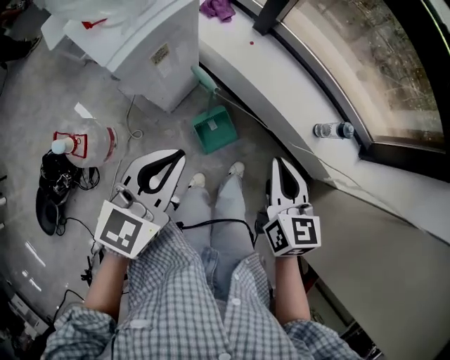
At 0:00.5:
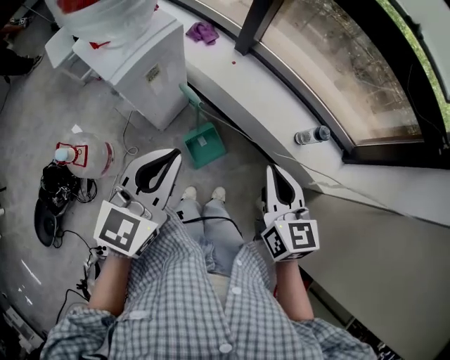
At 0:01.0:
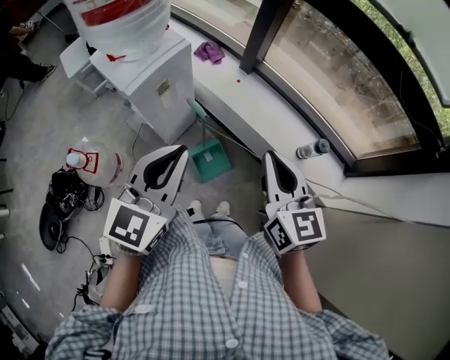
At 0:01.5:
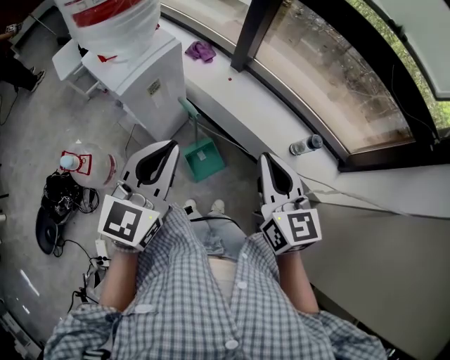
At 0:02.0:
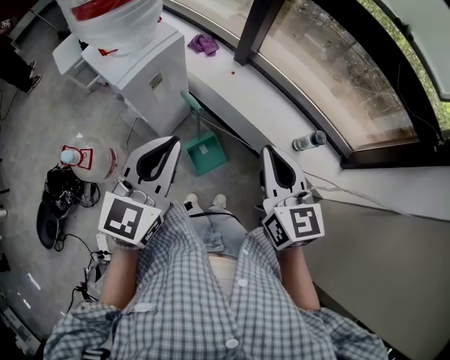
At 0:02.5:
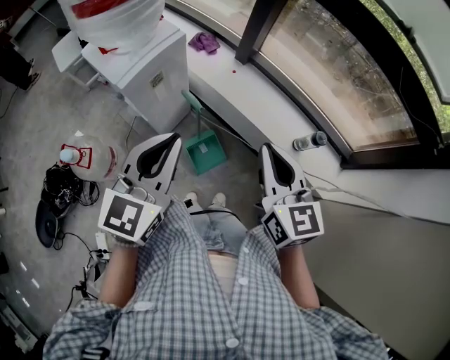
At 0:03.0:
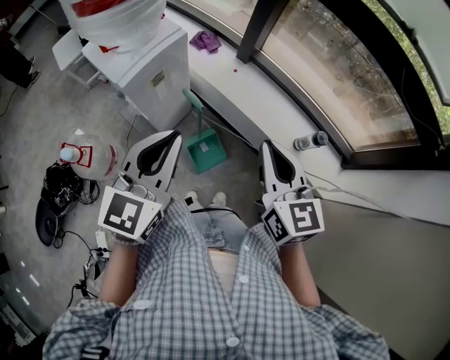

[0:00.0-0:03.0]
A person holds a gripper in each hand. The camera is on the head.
0:00.0 to 0:01.5: The two grippers go some 15 cm upward.
0:01.5 to 0:03.0: The grippers move only a little.

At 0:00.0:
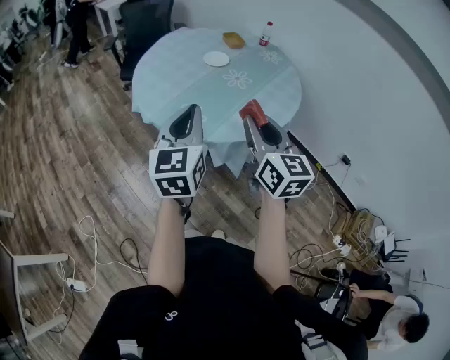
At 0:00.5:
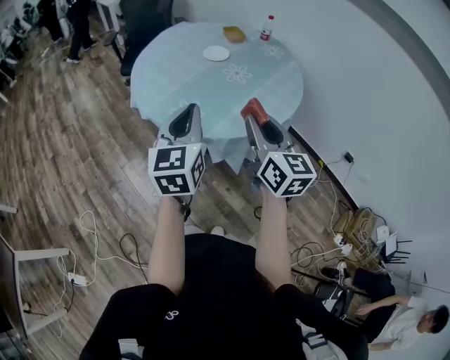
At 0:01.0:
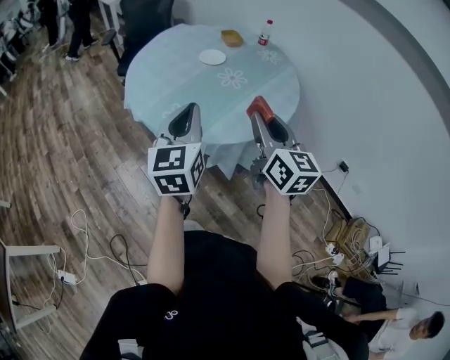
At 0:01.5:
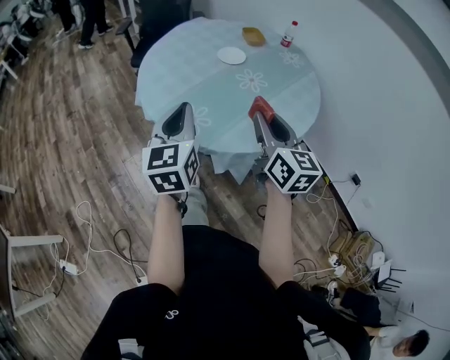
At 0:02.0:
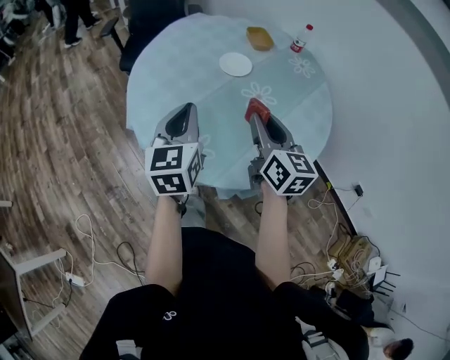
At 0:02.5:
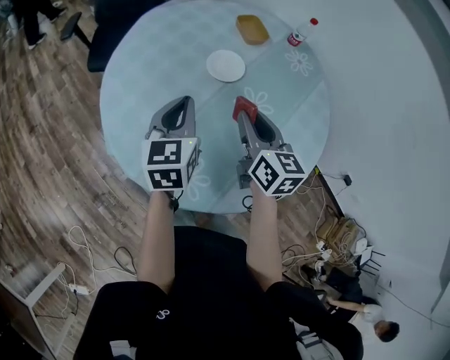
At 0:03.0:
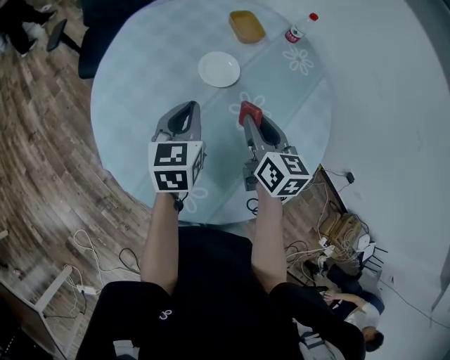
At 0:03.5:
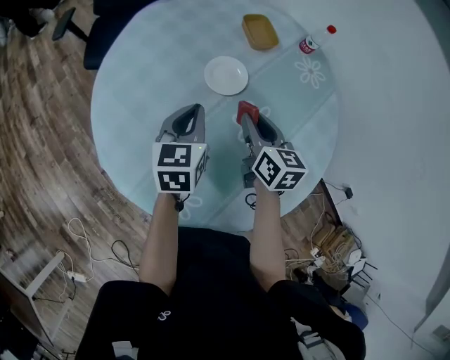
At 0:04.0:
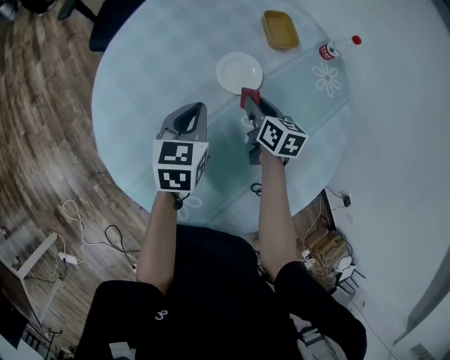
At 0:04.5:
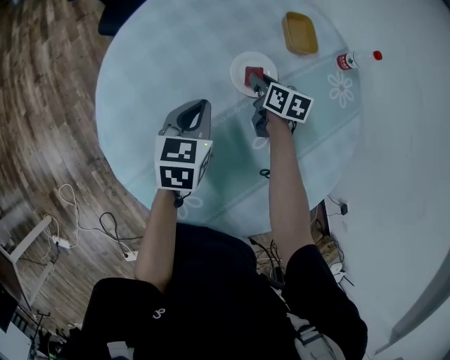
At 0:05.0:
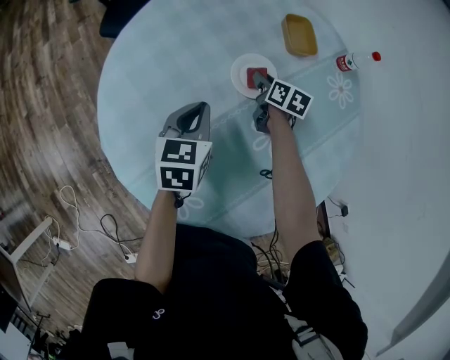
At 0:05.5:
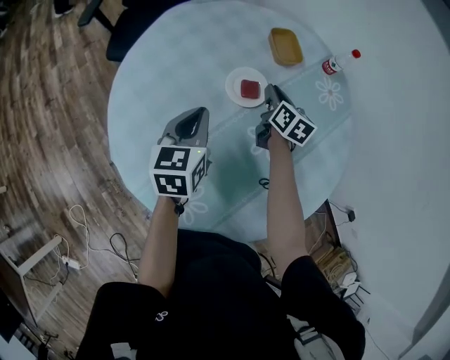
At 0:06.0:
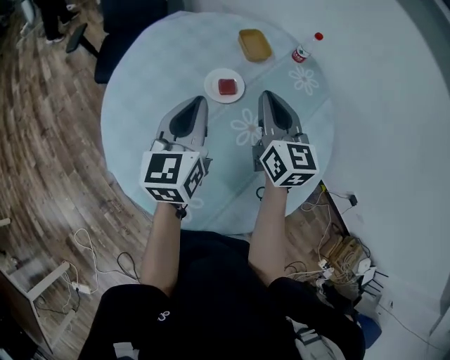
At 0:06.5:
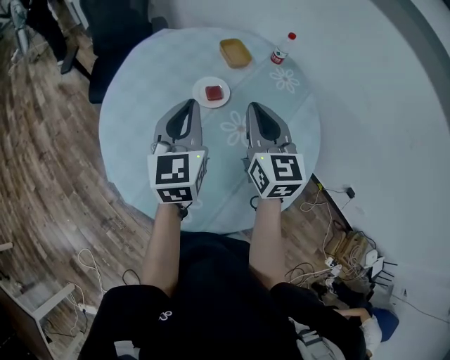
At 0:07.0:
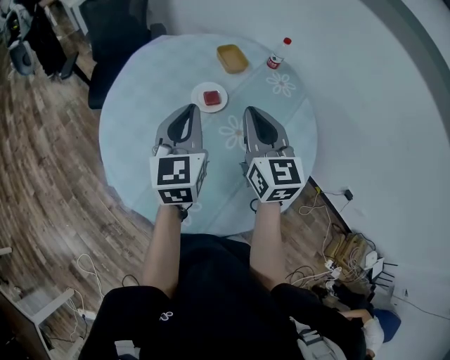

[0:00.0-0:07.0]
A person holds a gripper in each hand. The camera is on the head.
0:00.0 to 0:02.0: The grippers both shift forward by approximately 30 cm.
0:02.0 to 0:03.5: The grippers both shift forward and downward by approximately 30 cm.
0:03.5 to 0:05.0: The right gripper travels forward and downward by roughly 25 cm, and turns by some 20 degrees. The left gripper travels downward by about 5 cm.
0:05.0 to 0:07.0: The right gripper shifts about 40 cm upward and backward, tips its fingers upward by about 40 degrees, and closes up. The left gripper is displaced upward and backward by some 25 cm, and turns by roughly 30 degrees.

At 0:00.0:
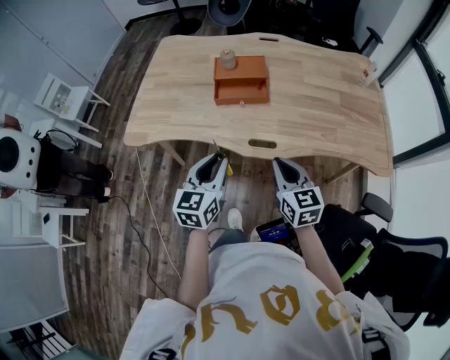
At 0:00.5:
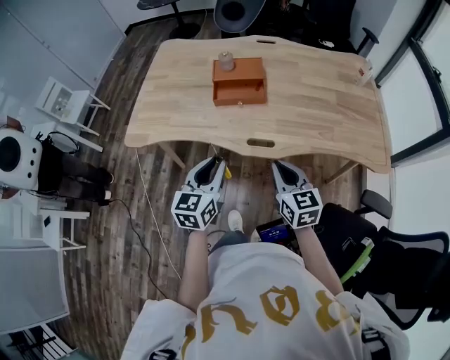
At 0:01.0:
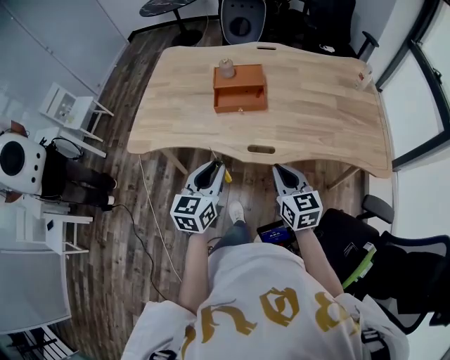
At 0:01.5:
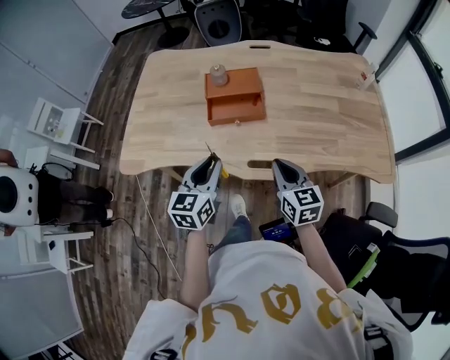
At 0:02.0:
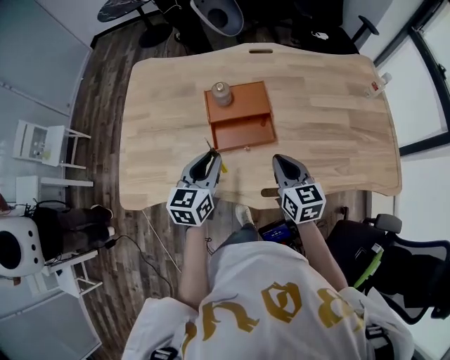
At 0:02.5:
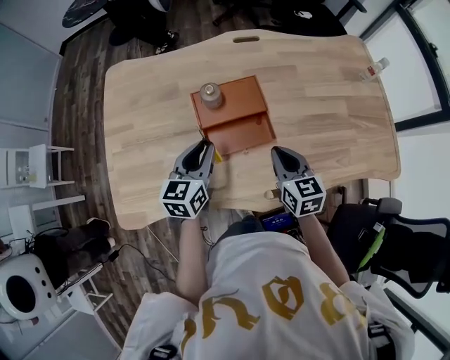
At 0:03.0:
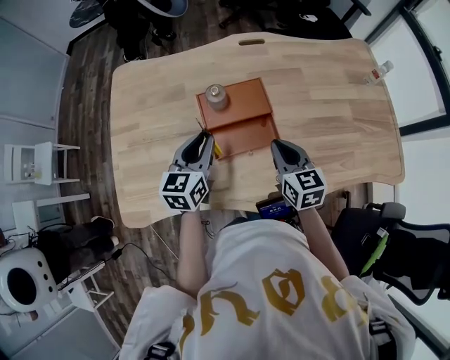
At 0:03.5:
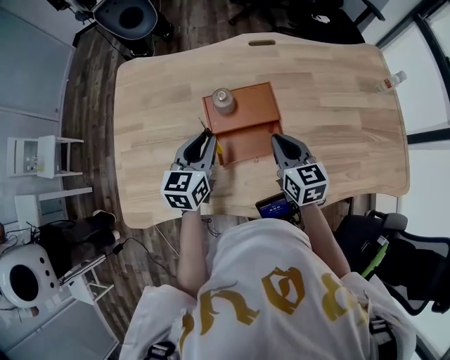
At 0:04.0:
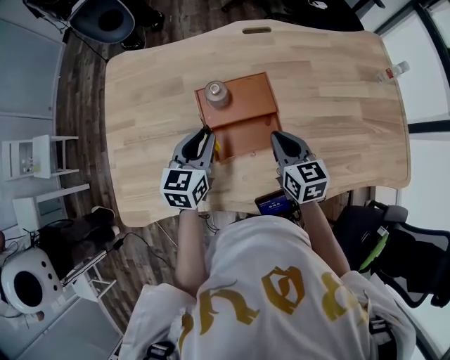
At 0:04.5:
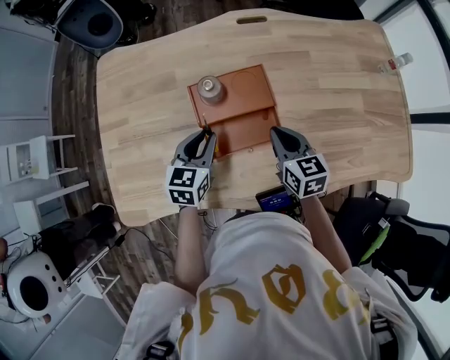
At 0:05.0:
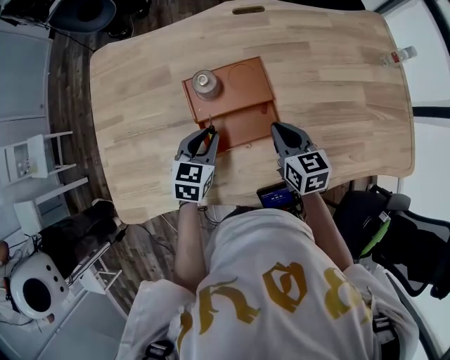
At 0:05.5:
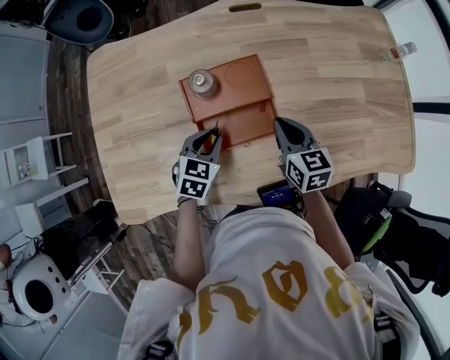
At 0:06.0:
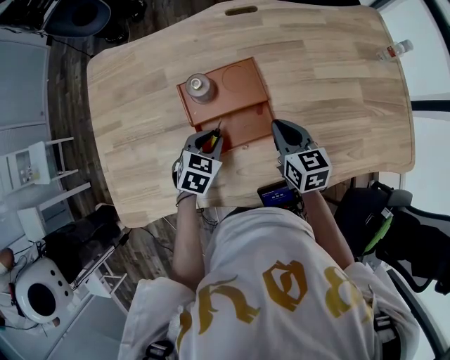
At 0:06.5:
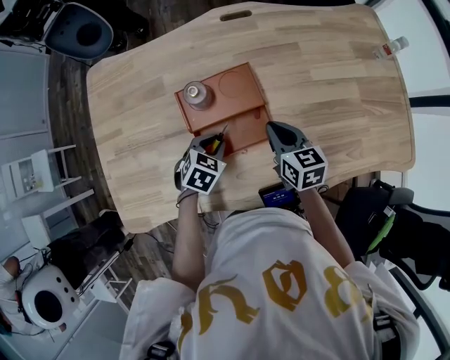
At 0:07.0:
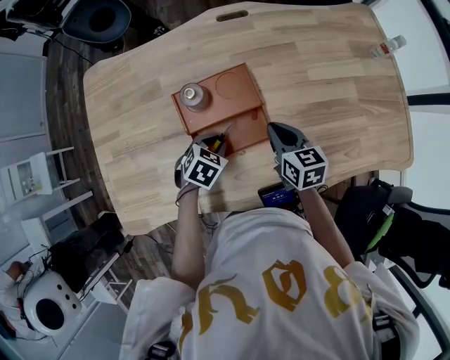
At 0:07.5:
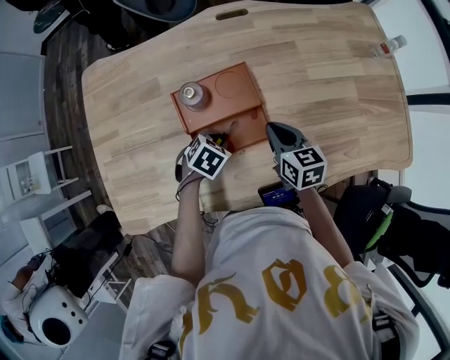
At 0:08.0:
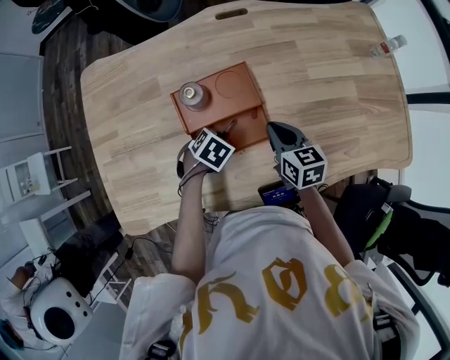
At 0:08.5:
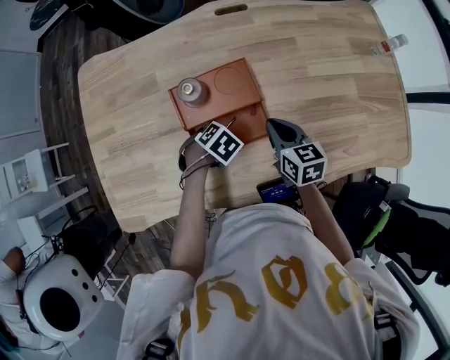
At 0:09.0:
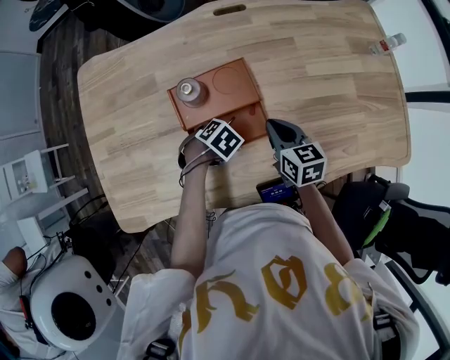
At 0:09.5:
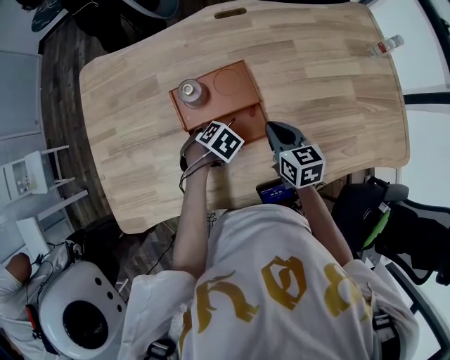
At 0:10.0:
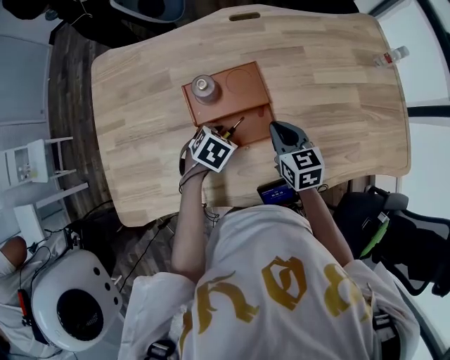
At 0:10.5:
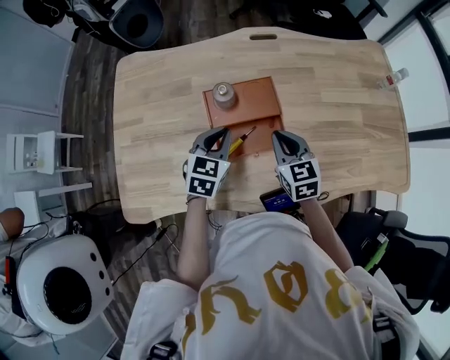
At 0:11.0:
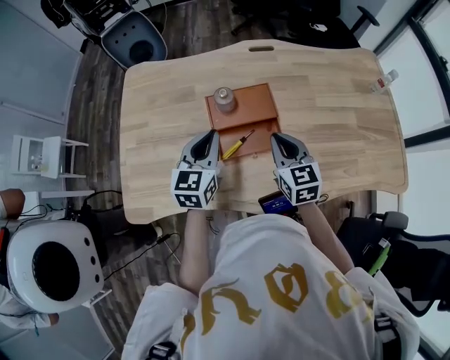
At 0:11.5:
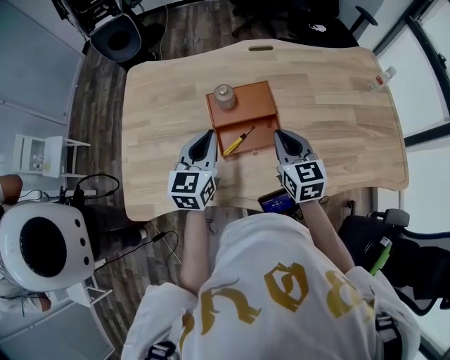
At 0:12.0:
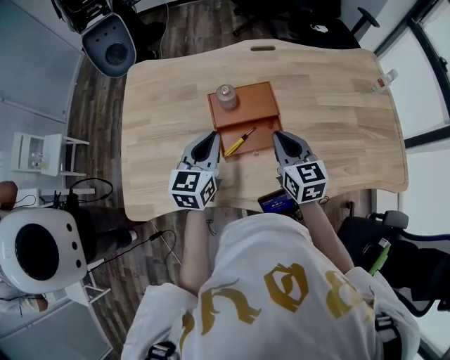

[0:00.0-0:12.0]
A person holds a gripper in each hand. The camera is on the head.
0:00.0 to 0:02.0: The two grippers go roughly 25 cm forward.
0:02.0 to 0:04.0: The right gripper is displaced forward and downward by approximately 15 cm. The left gripper moves forward, approximately 15 cm.
0:04.0 to 0:06.0: The right gripper ends up some 5 cm from where it was; the left gripper shifts some 10 cm downward, and turns by some 30 degrees.
0:06.0 to 0:08.0: The left gripper ends up approximately 5 cm from where it was, and rotates approximately 30 degrees.
0:08.0 to 0:10.0: The grippers stay close to where they were, moving slightly.
0:10.0 to 0:12.0: The right gripper travels upward and backward by roughly 10 cm; the left gripper shifts about 20 cm upward, angles its fingers upward, by about 50 degrees, and closes its fingers.

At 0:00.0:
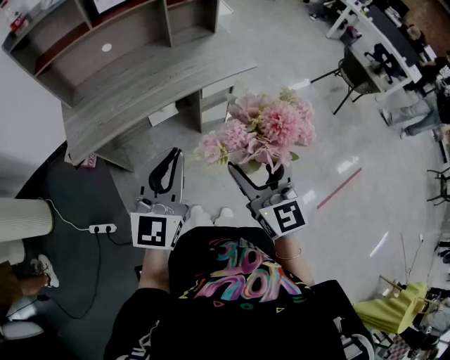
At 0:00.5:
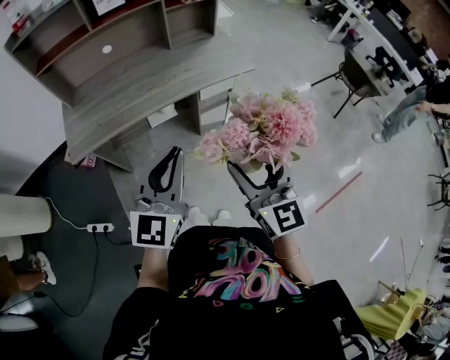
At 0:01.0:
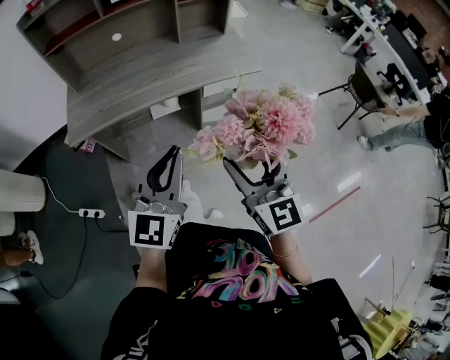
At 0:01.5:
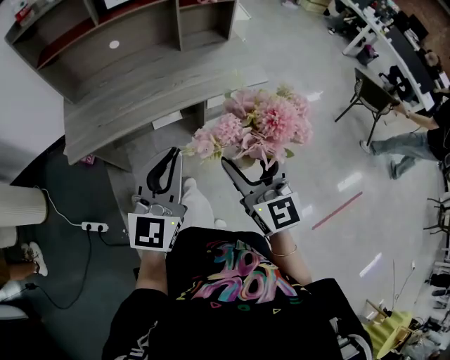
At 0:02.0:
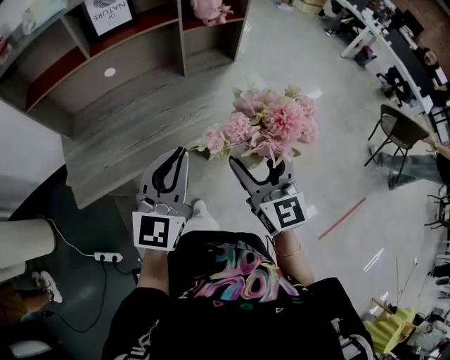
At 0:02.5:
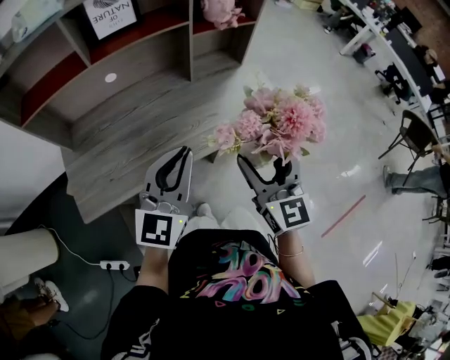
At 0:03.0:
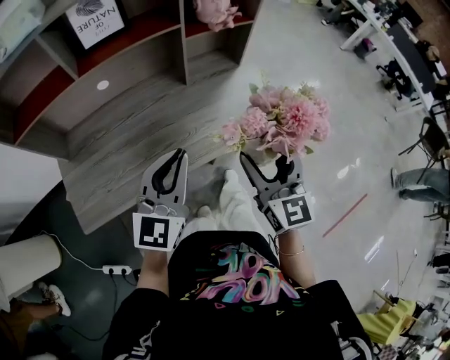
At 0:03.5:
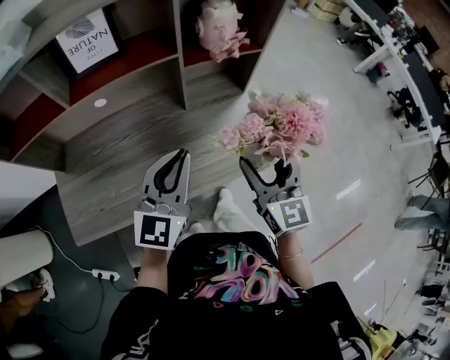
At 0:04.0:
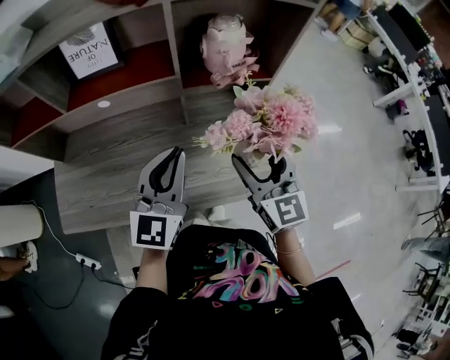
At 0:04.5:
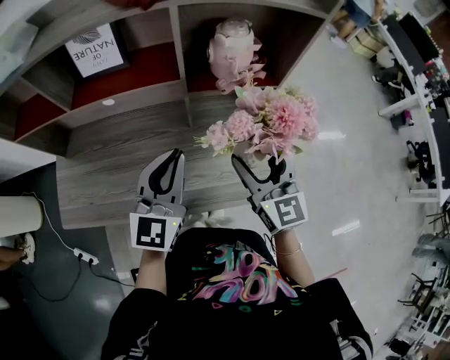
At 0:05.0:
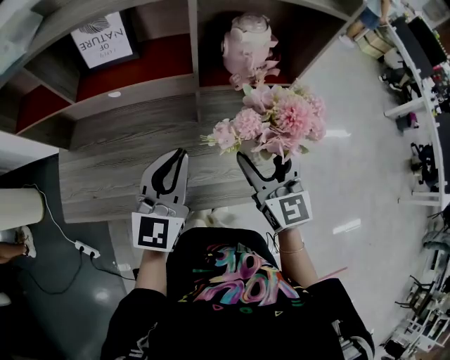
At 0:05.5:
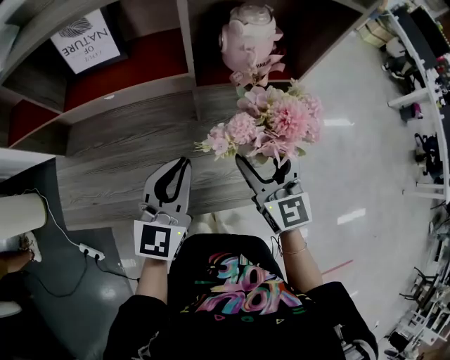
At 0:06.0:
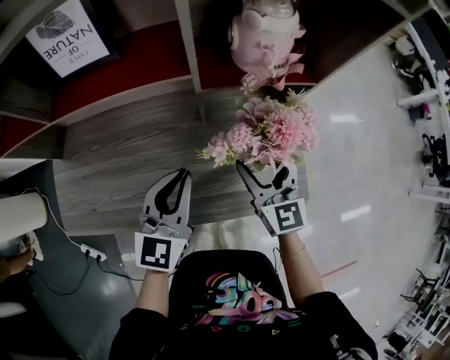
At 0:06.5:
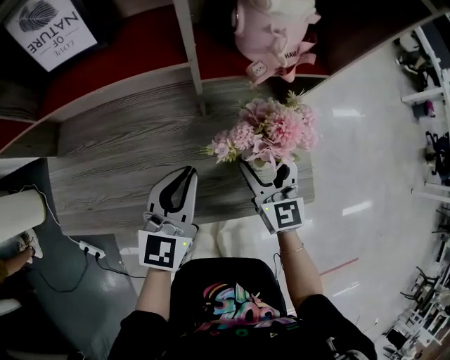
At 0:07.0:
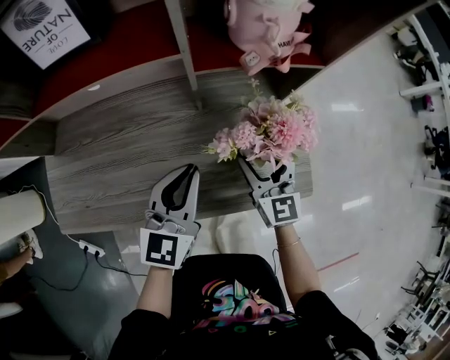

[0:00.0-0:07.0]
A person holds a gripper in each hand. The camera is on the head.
0:00.0 to 0:02.0: The grippers make only small movements.
0:02.0 to 0:03.5: Both grippers travel together backward, roughly 10 cm.
0:03.5 to 0:05.0: The left gripper travels forward by approximately 10 cm; the right gripper travels forward by about 15 cm.
0:05.0 to 0:07.0: The grippers both shift downward by approximately 15 cm.
